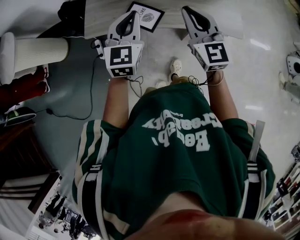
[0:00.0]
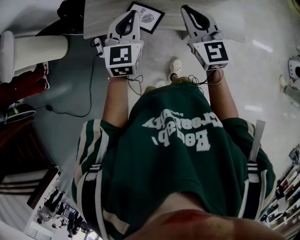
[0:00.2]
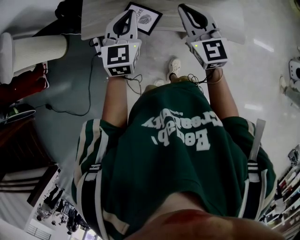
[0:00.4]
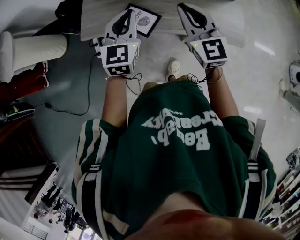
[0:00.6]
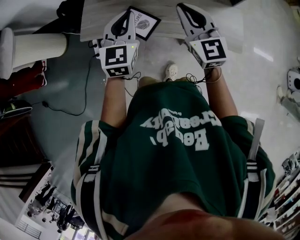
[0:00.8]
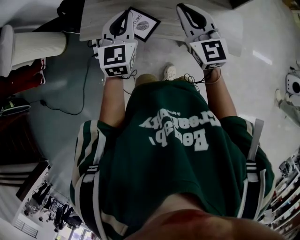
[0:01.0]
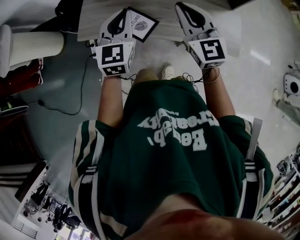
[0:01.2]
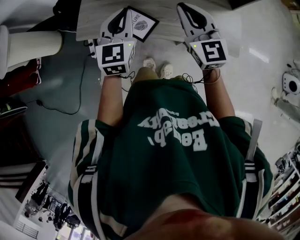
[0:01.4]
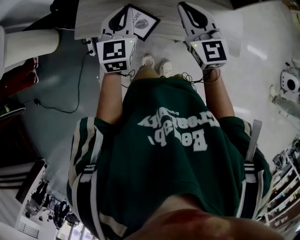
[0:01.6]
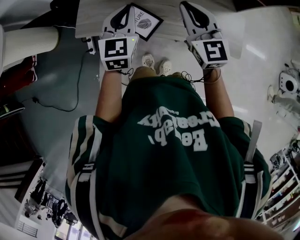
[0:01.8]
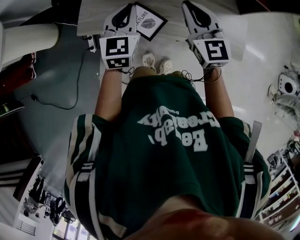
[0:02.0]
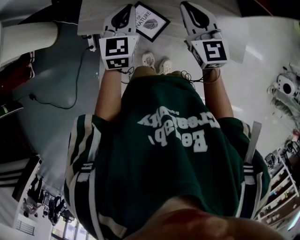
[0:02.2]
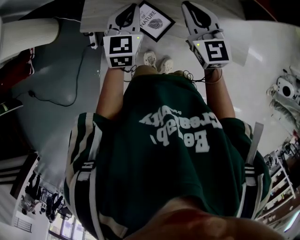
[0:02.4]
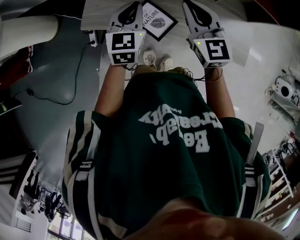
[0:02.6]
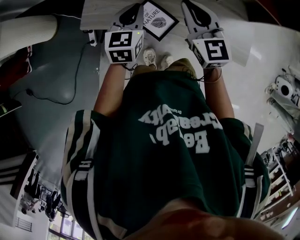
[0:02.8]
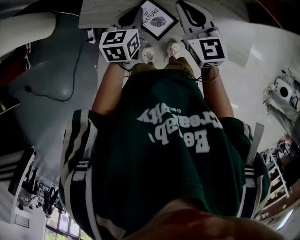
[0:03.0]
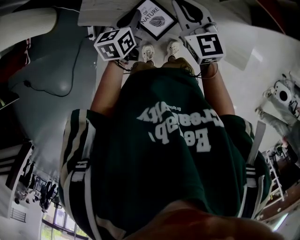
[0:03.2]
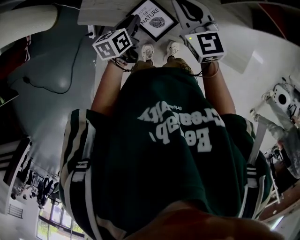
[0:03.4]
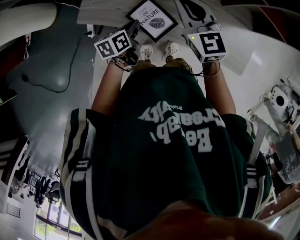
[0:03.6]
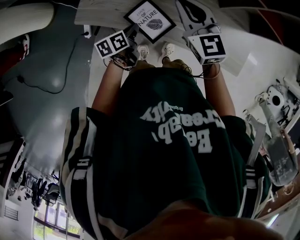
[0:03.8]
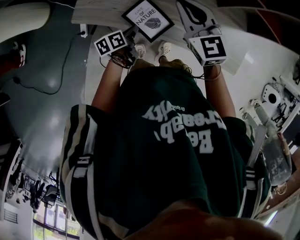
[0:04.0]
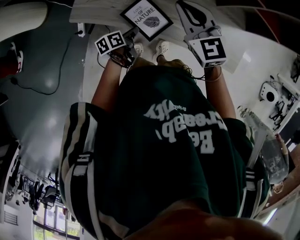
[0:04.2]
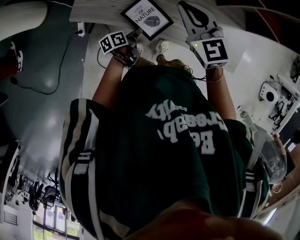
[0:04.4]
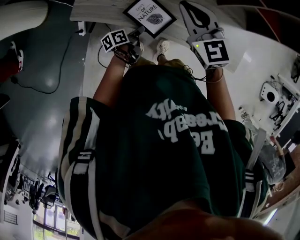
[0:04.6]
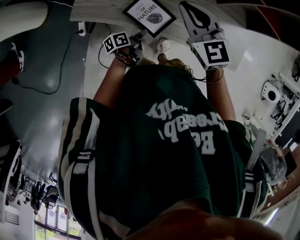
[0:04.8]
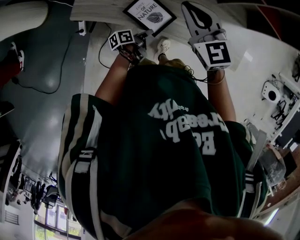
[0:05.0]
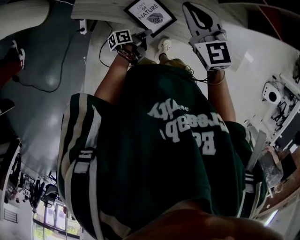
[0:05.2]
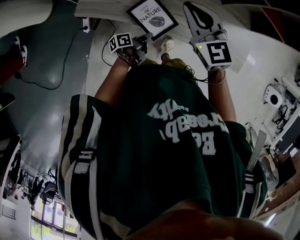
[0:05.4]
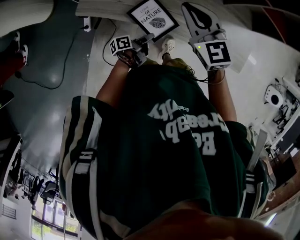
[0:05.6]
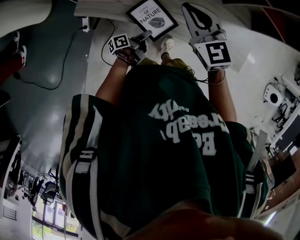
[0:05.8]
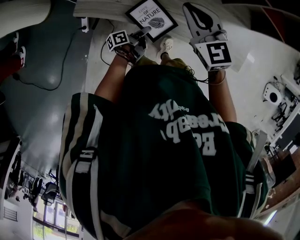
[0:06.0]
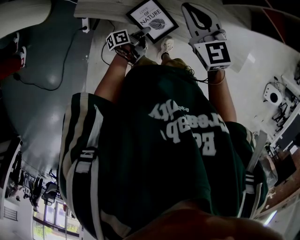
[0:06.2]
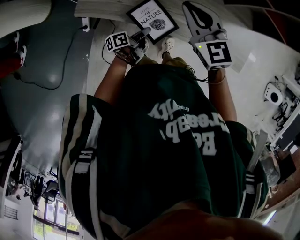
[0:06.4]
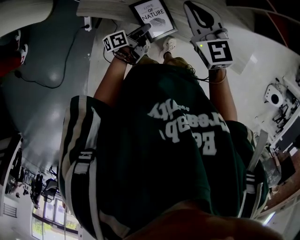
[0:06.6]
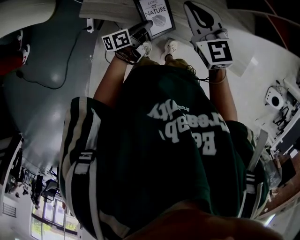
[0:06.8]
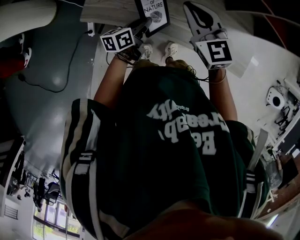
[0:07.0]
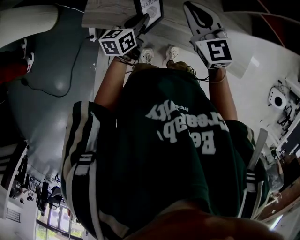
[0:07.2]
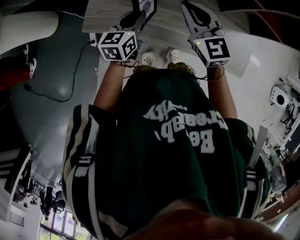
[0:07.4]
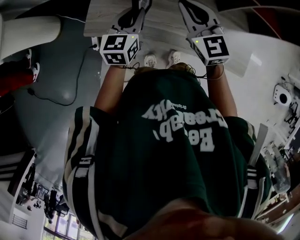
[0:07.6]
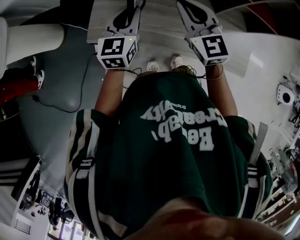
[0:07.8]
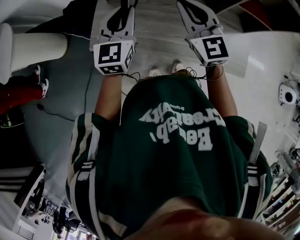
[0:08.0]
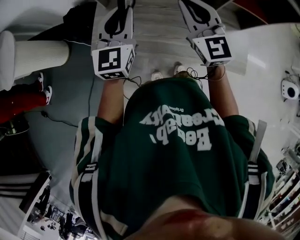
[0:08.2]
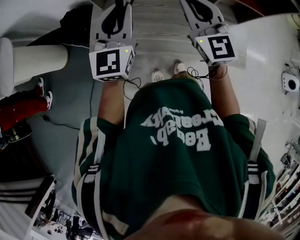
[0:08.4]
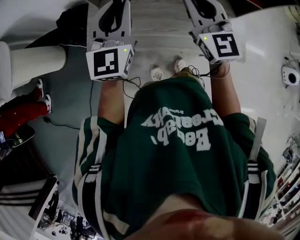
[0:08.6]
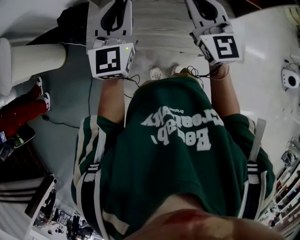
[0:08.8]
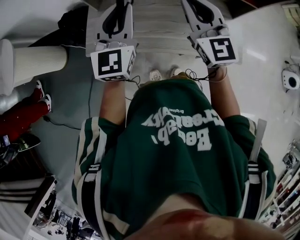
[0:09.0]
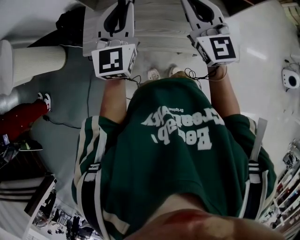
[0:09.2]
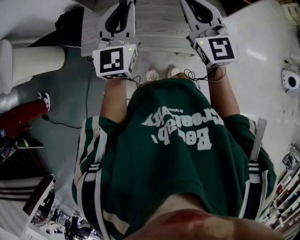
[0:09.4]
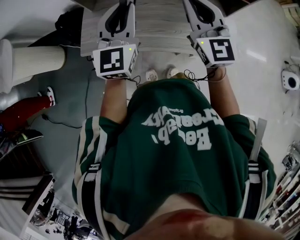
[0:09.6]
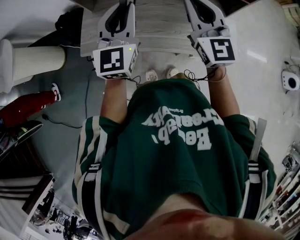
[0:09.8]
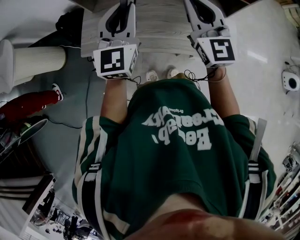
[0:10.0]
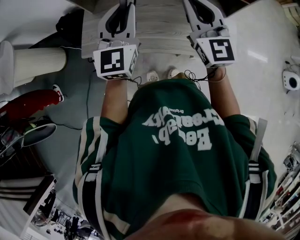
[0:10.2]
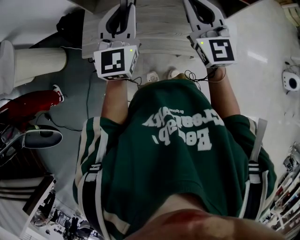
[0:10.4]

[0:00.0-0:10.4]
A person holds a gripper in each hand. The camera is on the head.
0.0 to 1.4 s: Both grippers travel together forward, some 10 cm.
1.4 to 3.0 s: The right gripper goes about 20 cm to the left, forward and downward. Meanwhile the left gripper heads downward, to the left and forward, covering some 20 cm, and turns by about 30 degrees.
3.0 to 4.4 s: The left gripper is displaced downward and backward by some 25 cm, and rolls counterclockwise, seen from behind, by about 50 degrees.
6.0 to 7.4 s: The left gripper heads upward and forward, covering roughly 25 cm, rolls clockwise, seen from behind, by some 70 degrees, and closes its fingers.
7.4 to 9.0 s: The left gripper moves upward, roughly 20 cm, and swivels roughly 40 degrees. The right gripper is displaced upward, to the right and backward by approximately 15 cm, and turns by roughly 20 degrees.
9.0 to 10.4 s: Both grippers travel together to the right, approximately 5 cm.

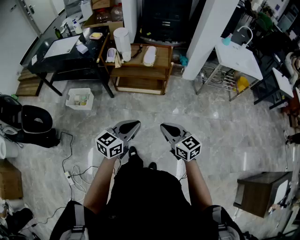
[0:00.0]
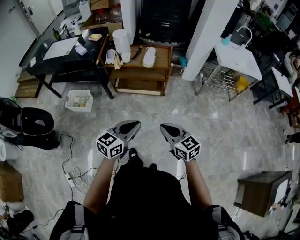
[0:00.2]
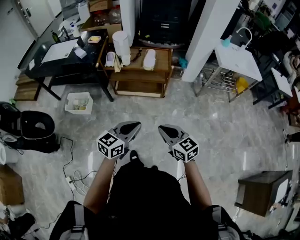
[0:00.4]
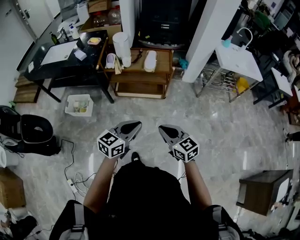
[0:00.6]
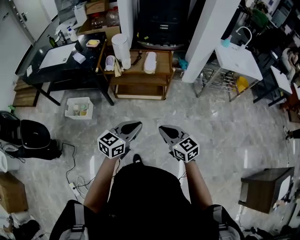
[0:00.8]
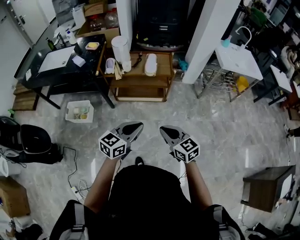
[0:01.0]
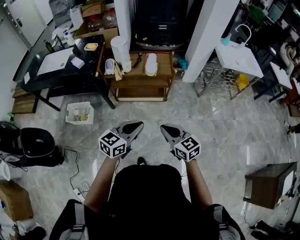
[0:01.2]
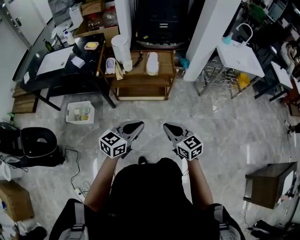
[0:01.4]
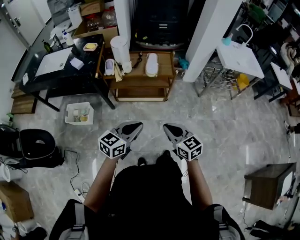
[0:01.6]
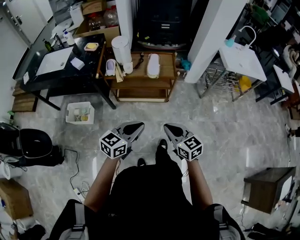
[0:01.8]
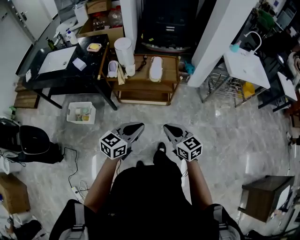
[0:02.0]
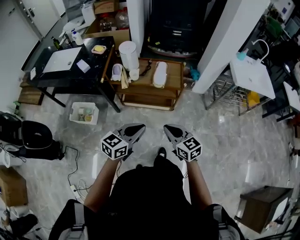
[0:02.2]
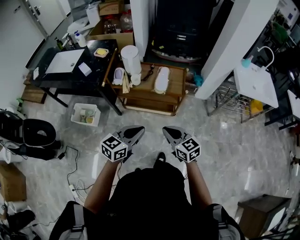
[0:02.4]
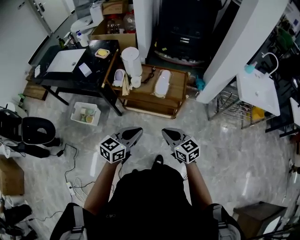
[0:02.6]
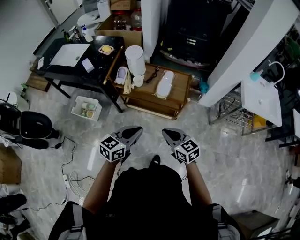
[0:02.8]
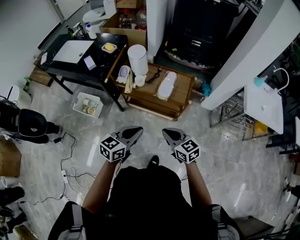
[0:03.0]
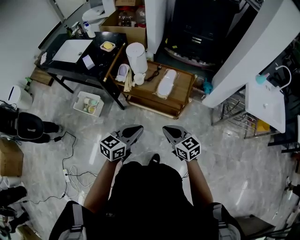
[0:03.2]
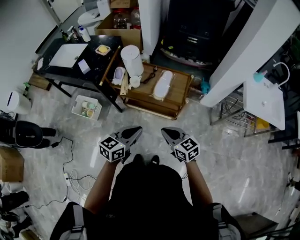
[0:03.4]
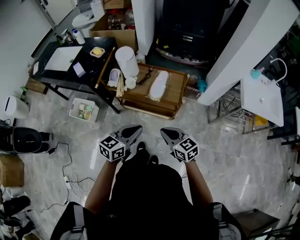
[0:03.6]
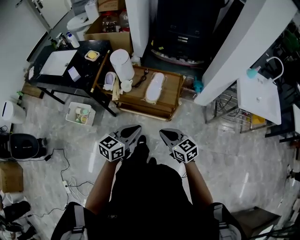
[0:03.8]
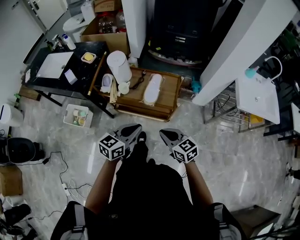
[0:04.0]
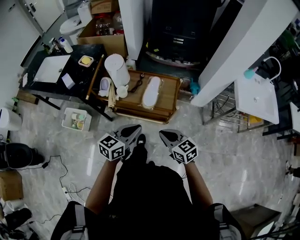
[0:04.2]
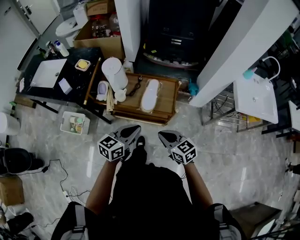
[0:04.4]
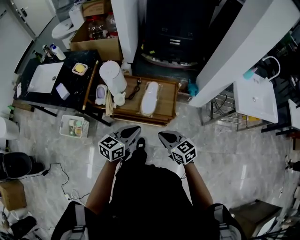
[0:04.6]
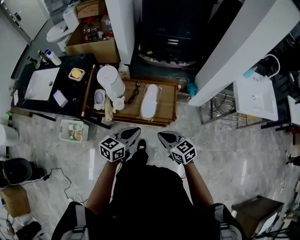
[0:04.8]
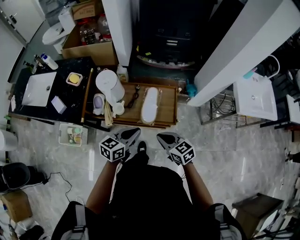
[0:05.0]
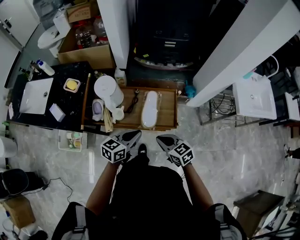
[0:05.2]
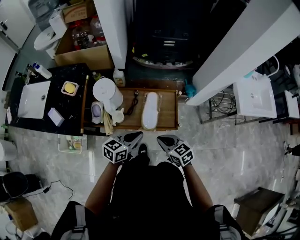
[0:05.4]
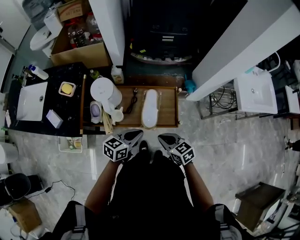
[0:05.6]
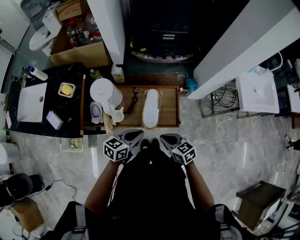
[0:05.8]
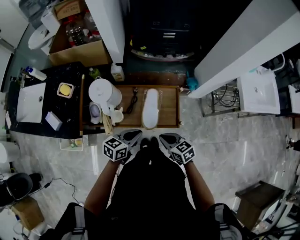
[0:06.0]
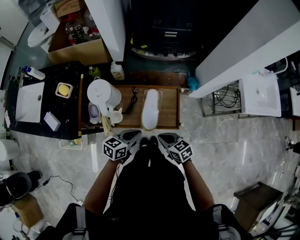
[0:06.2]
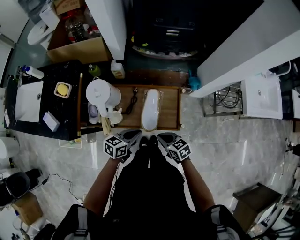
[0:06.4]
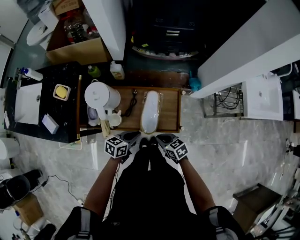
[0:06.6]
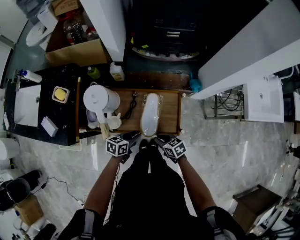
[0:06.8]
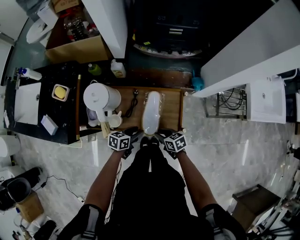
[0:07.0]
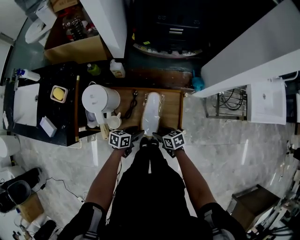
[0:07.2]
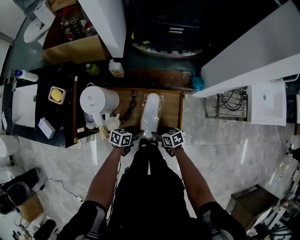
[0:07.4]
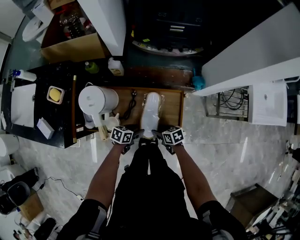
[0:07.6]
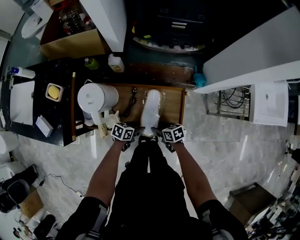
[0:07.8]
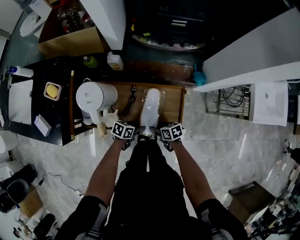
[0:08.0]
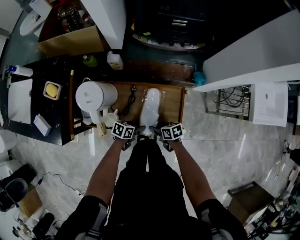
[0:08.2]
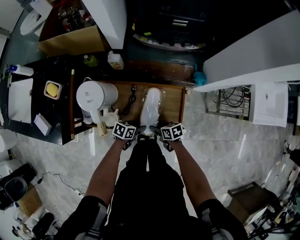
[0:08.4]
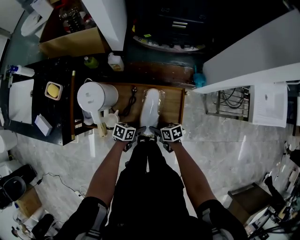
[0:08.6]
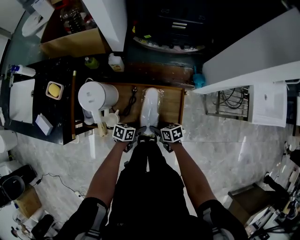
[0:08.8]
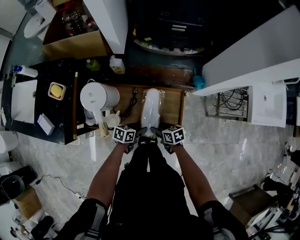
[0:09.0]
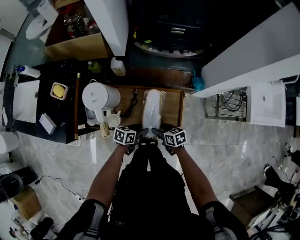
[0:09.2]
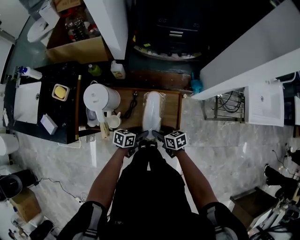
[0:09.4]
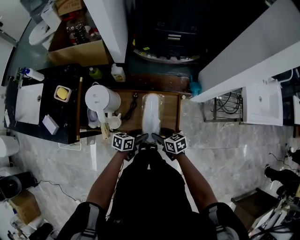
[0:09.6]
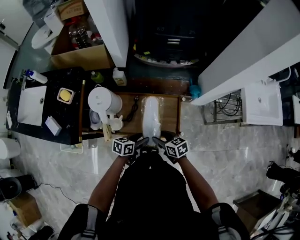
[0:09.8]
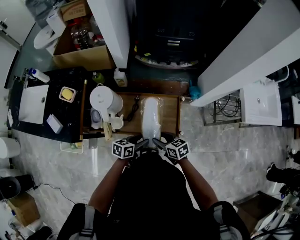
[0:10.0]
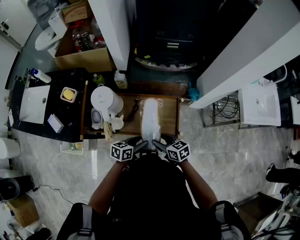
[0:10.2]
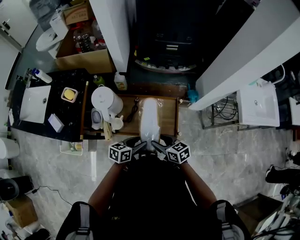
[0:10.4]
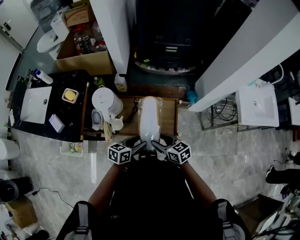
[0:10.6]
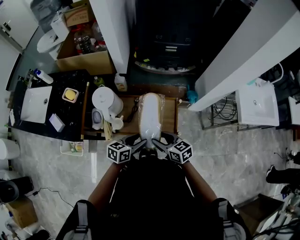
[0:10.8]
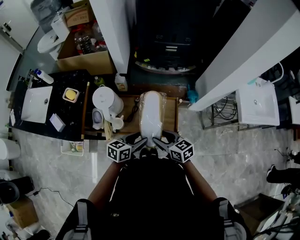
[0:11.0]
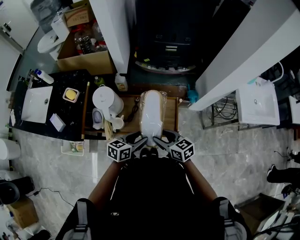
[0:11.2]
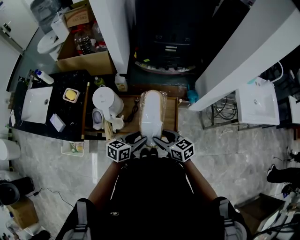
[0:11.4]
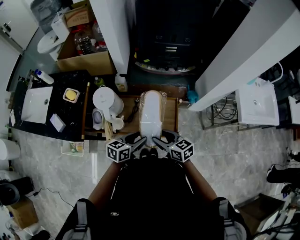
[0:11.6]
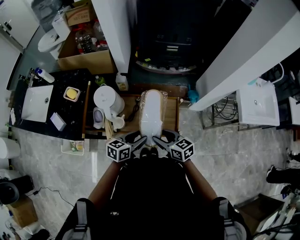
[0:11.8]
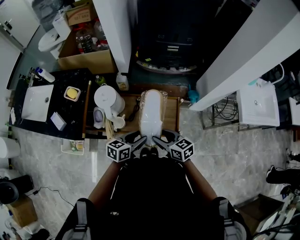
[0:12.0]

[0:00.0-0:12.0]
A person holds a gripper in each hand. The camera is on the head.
0.0 to 1.6 s: Both grippers travel together forward and to the left, roughly 15 cm.
1.6 to 3.0 s: The left gripper goes about 20 cm forward and to the right, while the right gripper travels forward by approximately 20 cm, and swivels some 20 degrees.
3.0 to 4.4 s: The left gripper goes roughly 15 cm forward and to the right. Meanwhile the right gripper moves forward, some 10 cm.
4.4 to 6.0 s: The two grippers go roughly 20 cm forward and downward. The left gripper rotates approximately 20 degrees.
6.0 to 7.6 s: Both grippers travel together downward, approximately 20 cm. The right gripper swivels roughly 20 degrees, and opens its fingers; the left gripper rotates some 20 degrees, and opens up.
7.6 to 9.0 s: The grippers stay close to where they were, moving slightly.
9.0 to 10.4 s: The grippers both shift upward by roughly 15 cm.
10.4 to 12.0 s: The left gripper heads upward, covering about 5 cm.

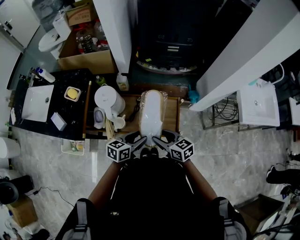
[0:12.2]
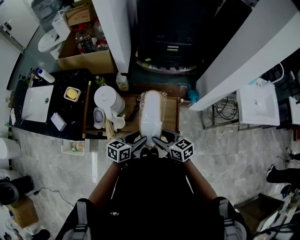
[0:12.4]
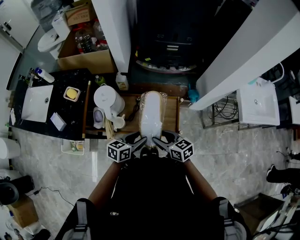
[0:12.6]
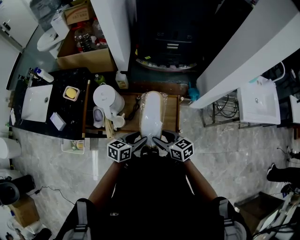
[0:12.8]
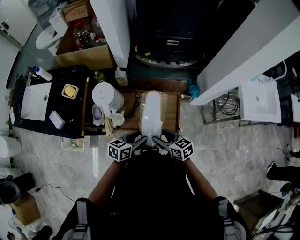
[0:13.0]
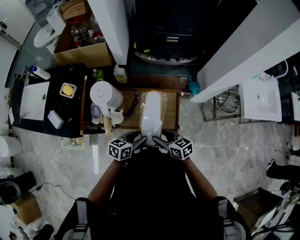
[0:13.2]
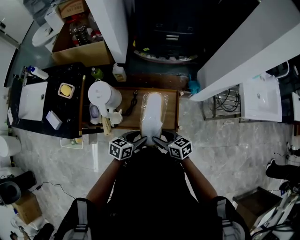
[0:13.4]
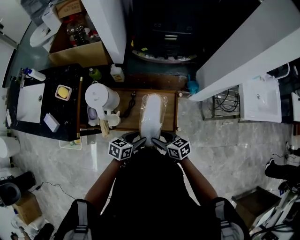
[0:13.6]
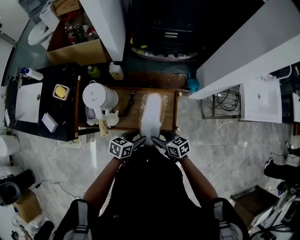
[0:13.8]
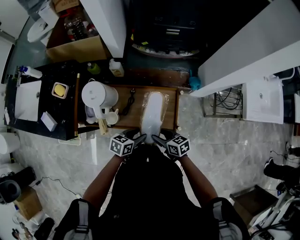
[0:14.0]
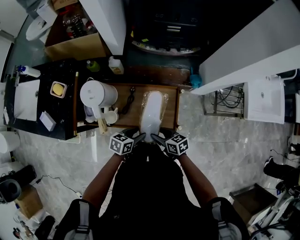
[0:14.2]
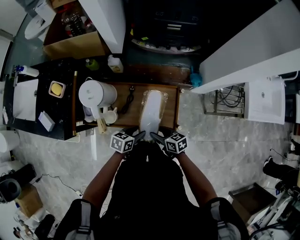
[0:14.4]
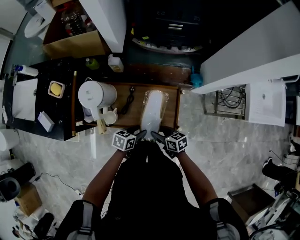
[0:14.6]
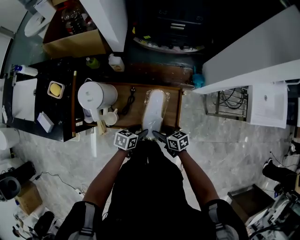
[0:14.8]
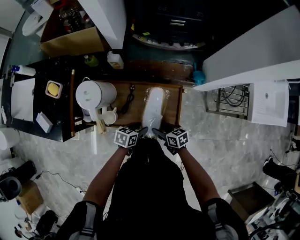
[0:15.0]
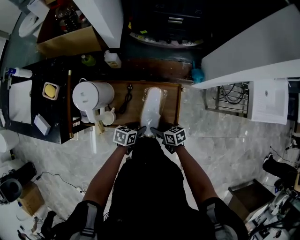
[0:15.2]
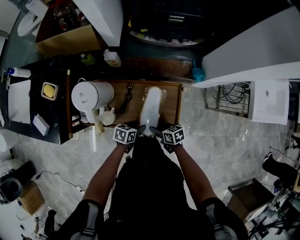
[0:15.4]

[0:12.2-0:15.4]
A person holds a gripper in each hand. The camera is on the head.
12.2 to 13.8 s: The grippers both shift downward by some 10 cm.
13.8 to 15.4 s: Both grippers travel together downward, roughly 15 cm.
